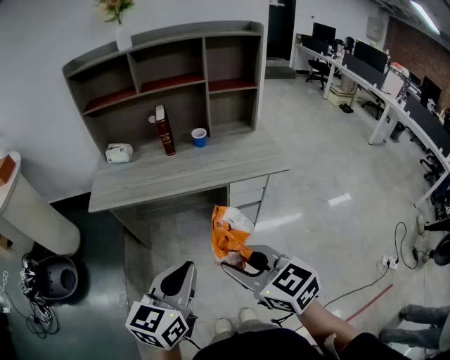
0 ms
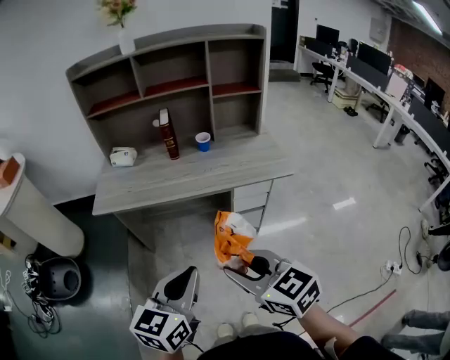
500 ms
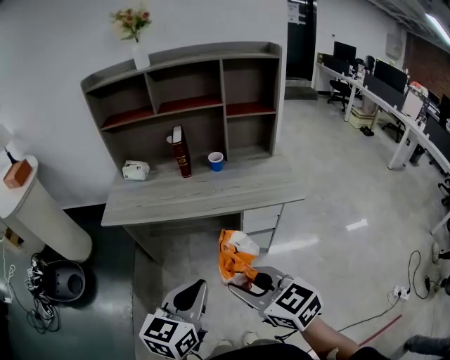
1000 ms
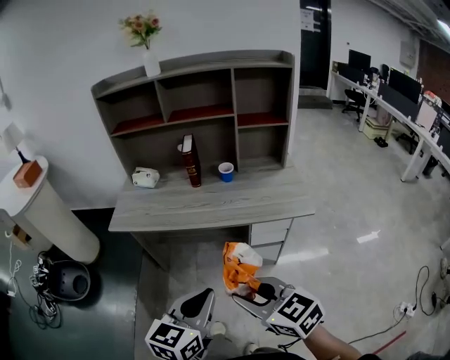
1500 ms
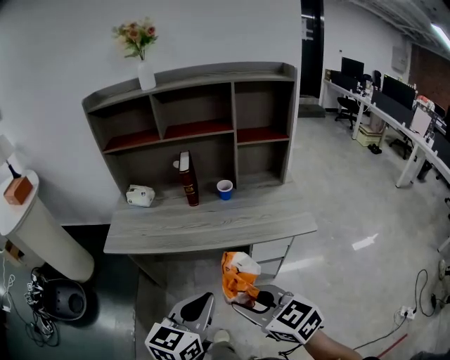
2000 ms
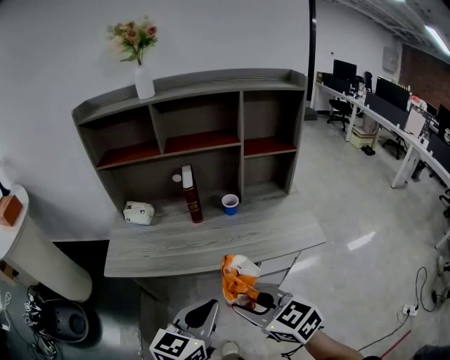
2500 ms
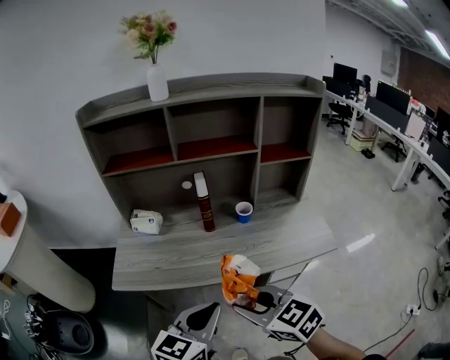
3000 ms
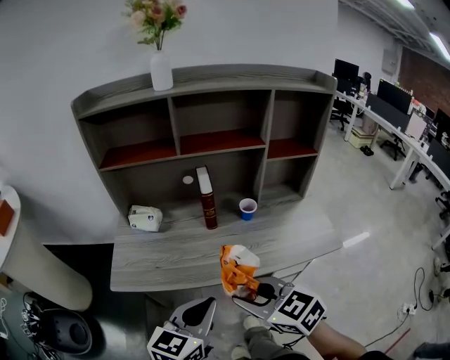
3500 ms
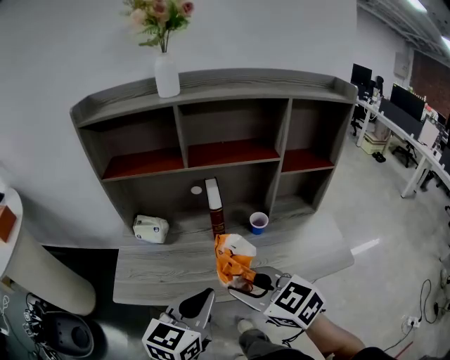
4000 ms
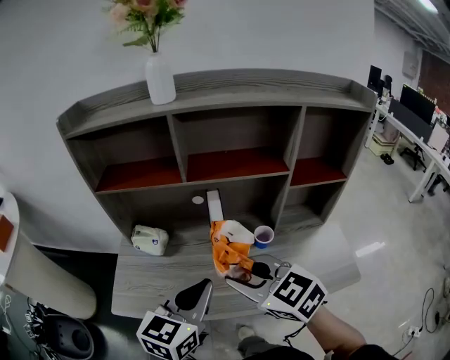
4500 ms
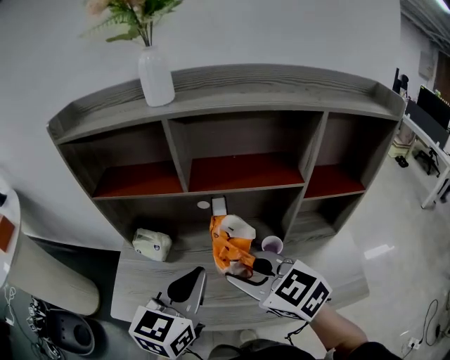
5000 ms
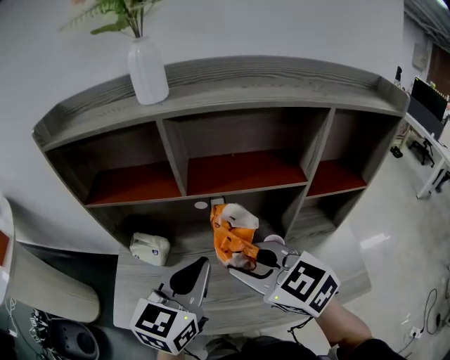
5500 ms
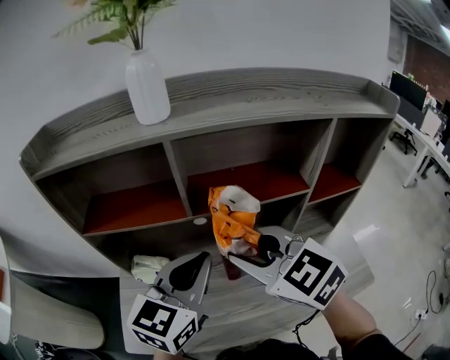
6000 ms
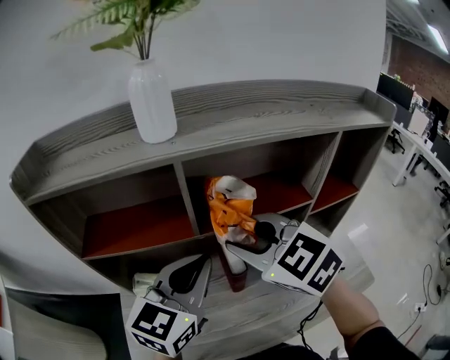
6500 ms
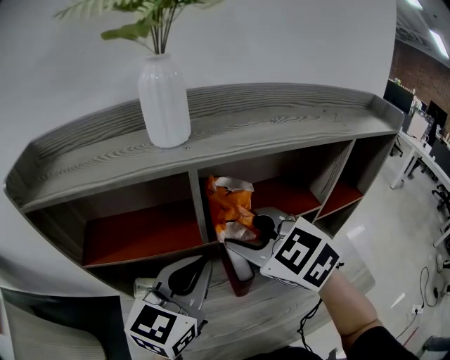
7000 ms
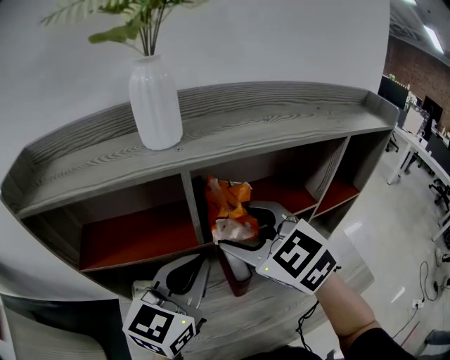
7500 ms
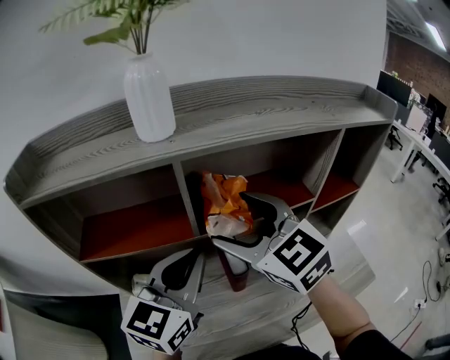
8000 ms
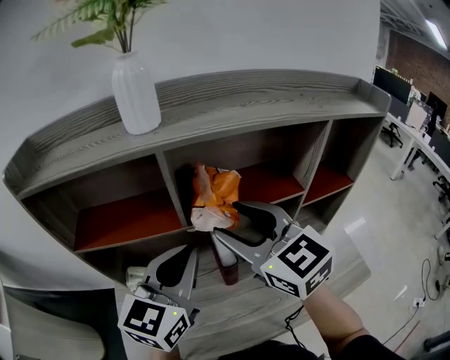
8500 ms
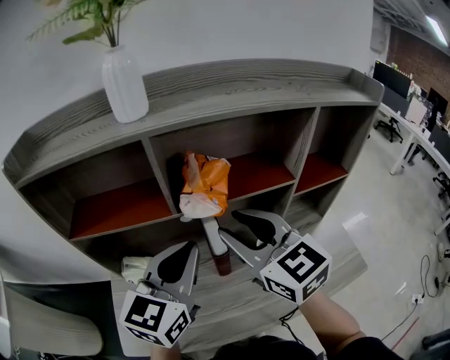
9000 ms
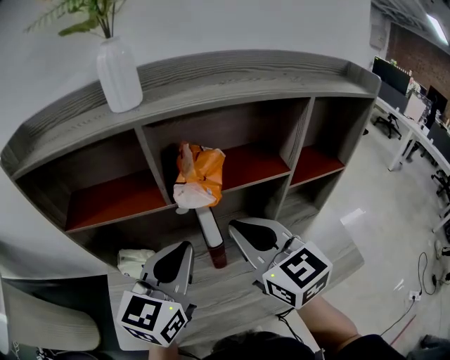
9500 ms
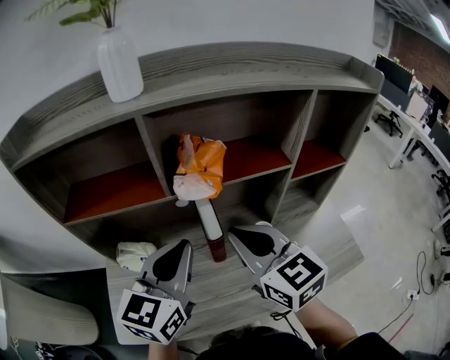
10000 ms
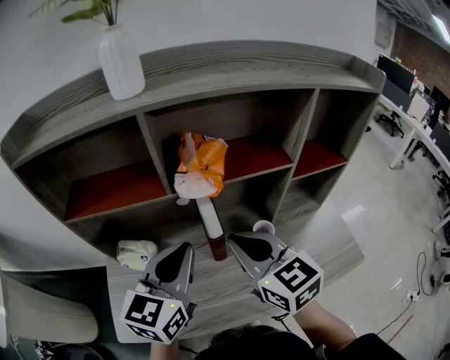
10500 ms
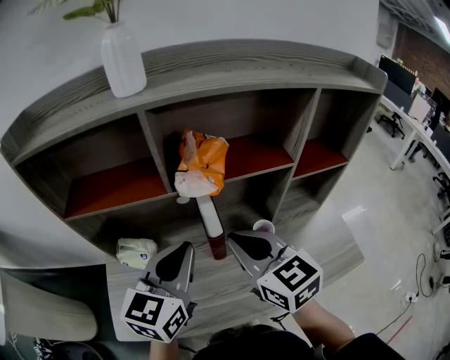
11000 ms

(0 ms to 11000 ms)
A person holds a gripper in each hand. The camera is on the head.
0 ms - 2000 ms: The right gripper heads forward, covering roughly 10 cm. The left gripper goes about 15 cm forward and to the right.
2000 ms - 3500 ms: Both grippers travel together forward and to the left, roughly 20 cm.
3500 ms - 5500 ms: Both grippers move forward, some 25 cm.
5500 ms - 7500 ms: The left gripper moves forward and upward, approximately 10 cm. Meanwhile the right gripper heads forward and upward, covering some 20 cm, rotates some 20 degrees, and opens up.
7500 ms - 9000 ms: The right gripper is displaced backward and to the right by some 10 cm, turns by some 20 degrees, and closes up. The left gripper shifts by about 5 cm.
9000 ms - 11000 ms: The right gripper goes some 5 cm downward, and closes. Meanwhile the left gripper moves approximately 5 cm.

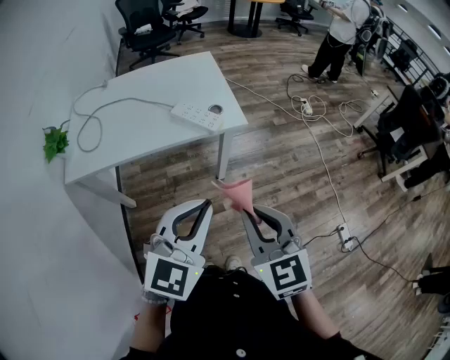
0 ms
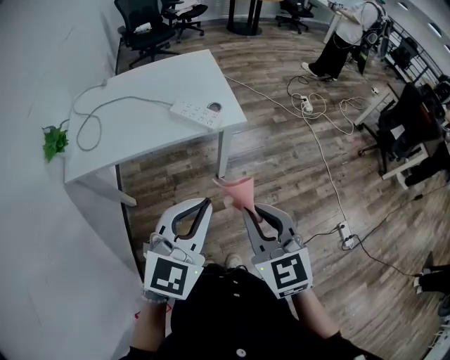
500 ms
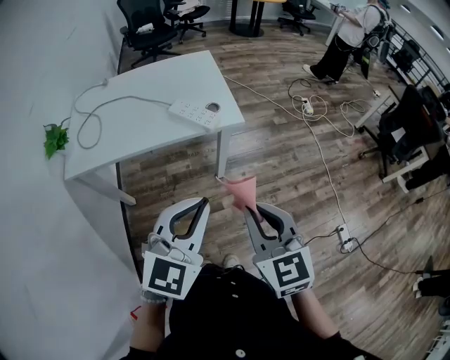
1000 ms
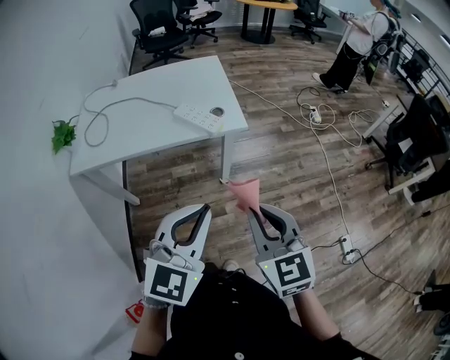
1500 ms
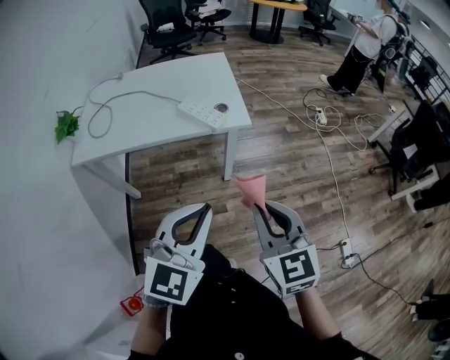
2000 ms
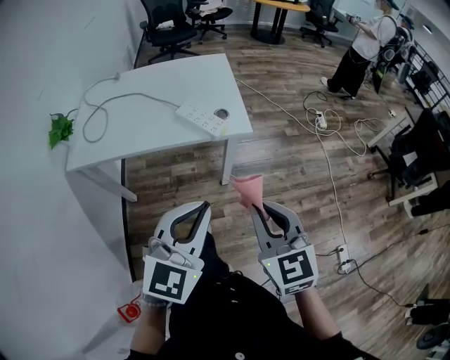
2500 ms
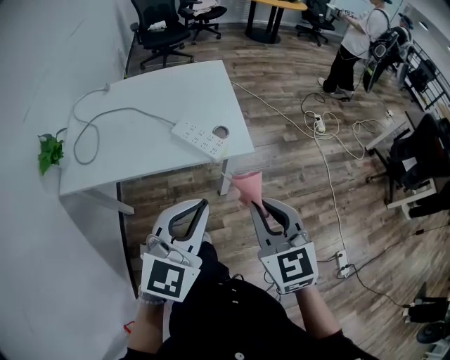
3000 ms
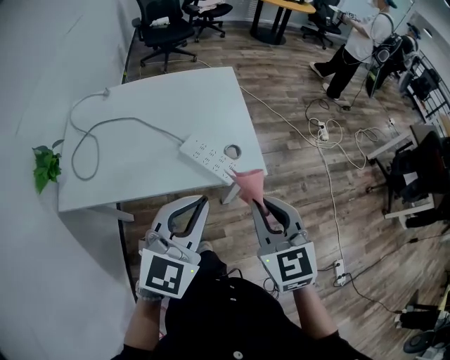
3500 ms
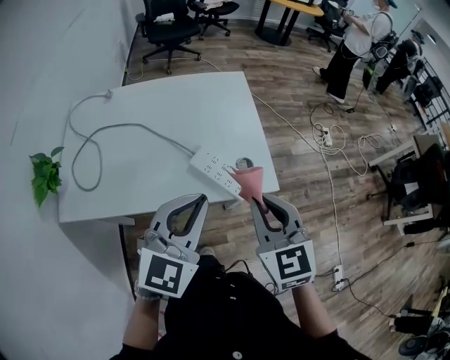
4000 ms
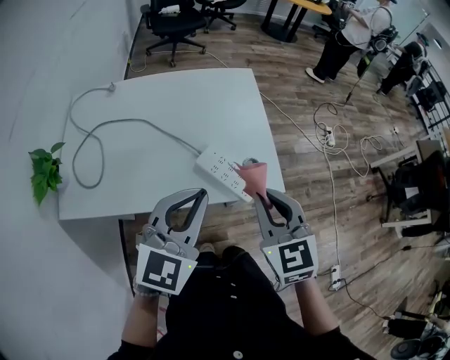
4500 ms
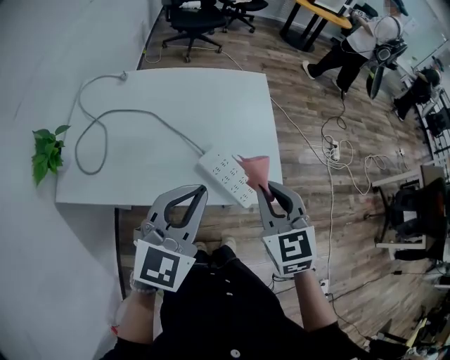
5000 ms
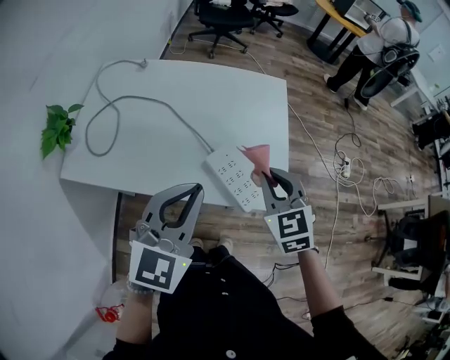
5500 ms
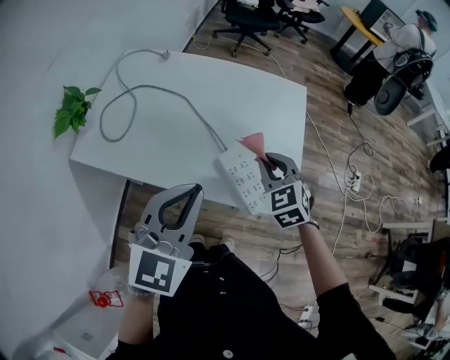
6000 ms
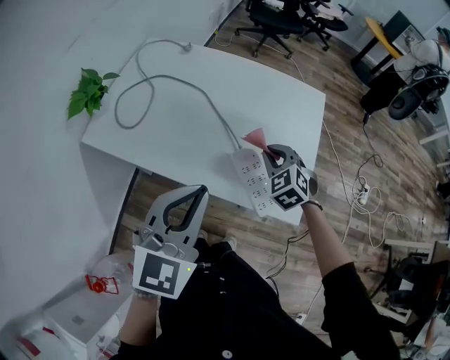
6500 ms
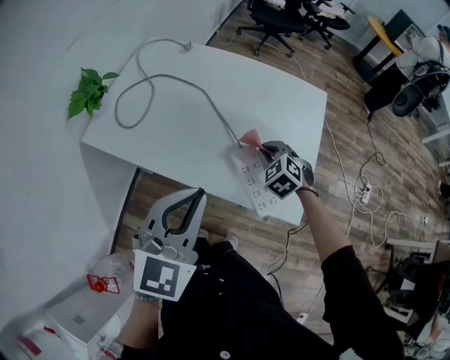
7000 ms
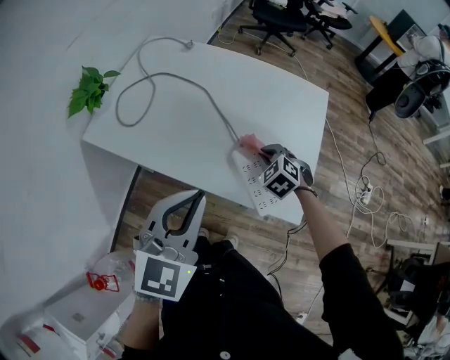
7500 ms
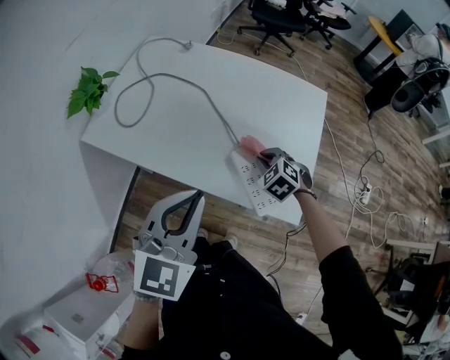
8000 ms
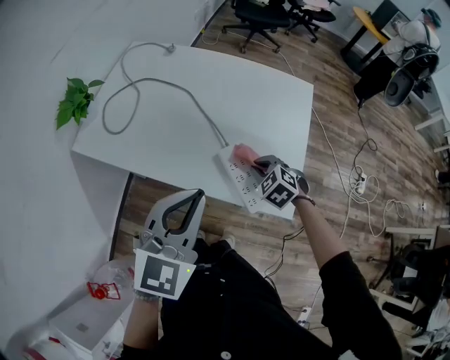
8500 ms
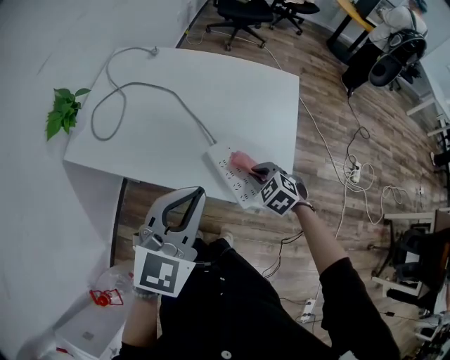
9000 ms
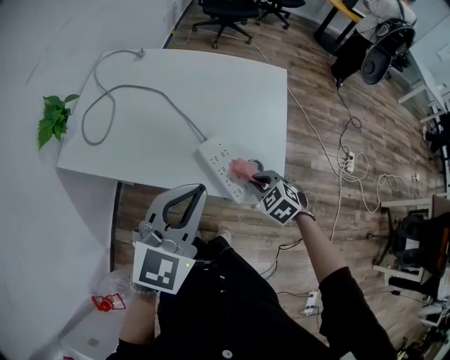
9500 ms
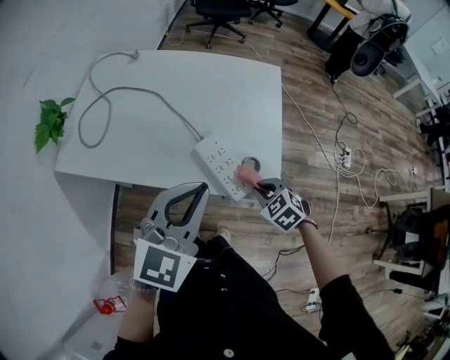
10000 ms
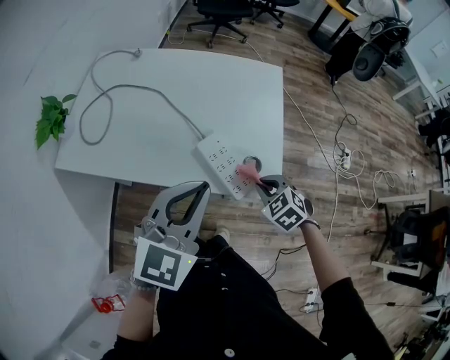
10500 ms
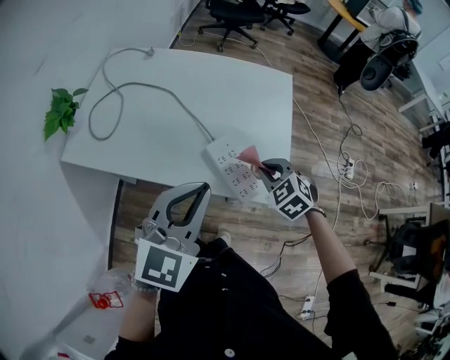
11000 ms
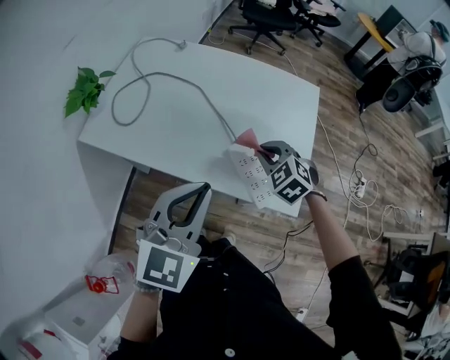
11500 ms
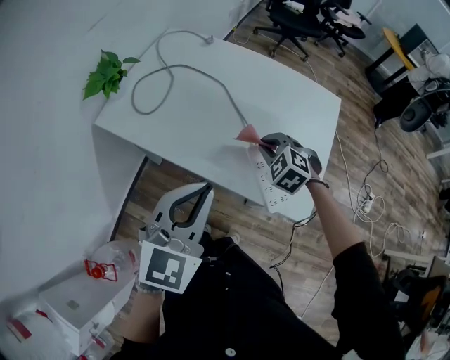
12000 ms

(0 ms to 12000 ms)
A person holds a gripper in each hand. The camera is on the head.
0 ms - 2000 ms: Both grippers travel together to the right, approximately 5 cm.
2000 ms - 4000 ms: The two grippers go about 40 cm forward and to the left.
4000 ms - 6000 ms: The left gripper ends up approximately 5 cm from where it was, and changes its angle by approximately 20 degrees. The right gripper moves forward and downward, roughly 20 cm, and turns by roughly 30 degrees.
6000 ms - 8000 ms: The right gripper goes roughly 15 cm downward, and rotates approximately 30 degrees.
8000 ms - 10000 ms: The left gripper is displaced to the right by roughly 10 cm. Meanwhile the right gripper heads backward and to the right, covering roughly 20 cm.
10000 ms - 12000 ms: The left gripper travels to the left by some 10 cm; the right gripper goes roughly 20 cm to the left and forward, and turns by roughly 30 degrees.

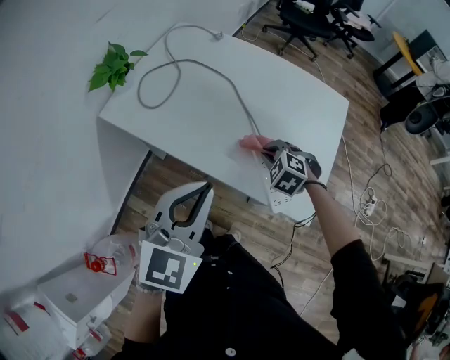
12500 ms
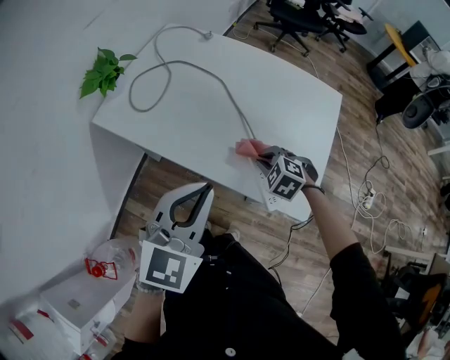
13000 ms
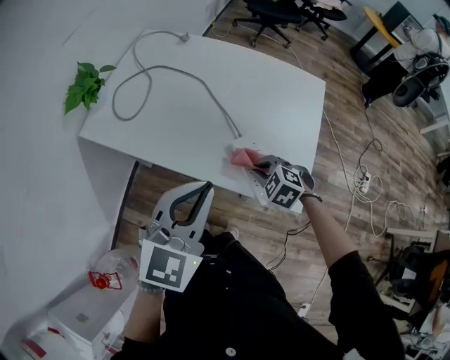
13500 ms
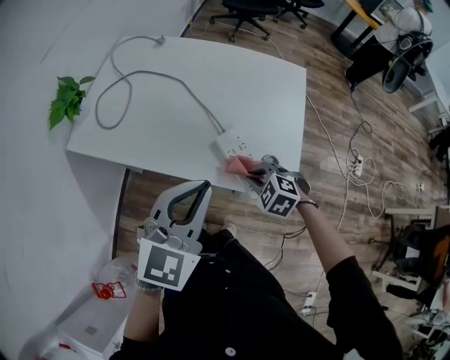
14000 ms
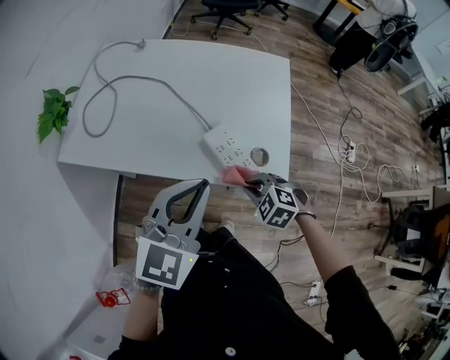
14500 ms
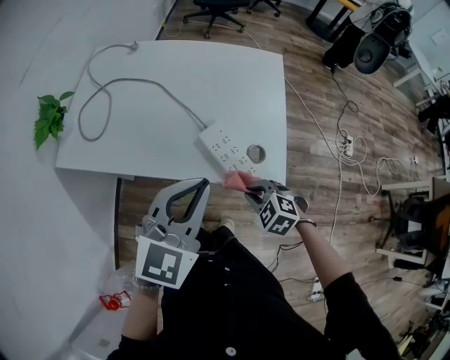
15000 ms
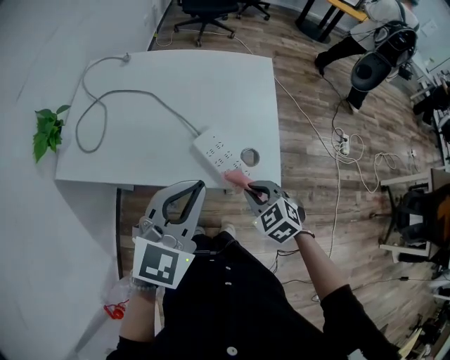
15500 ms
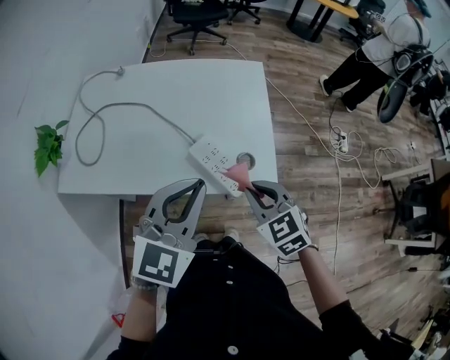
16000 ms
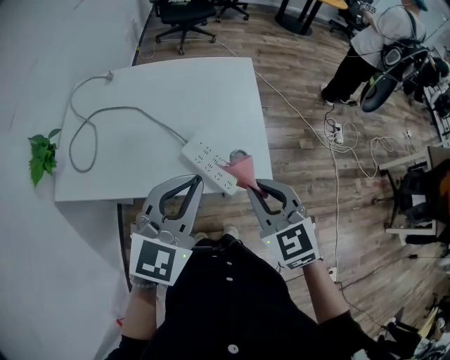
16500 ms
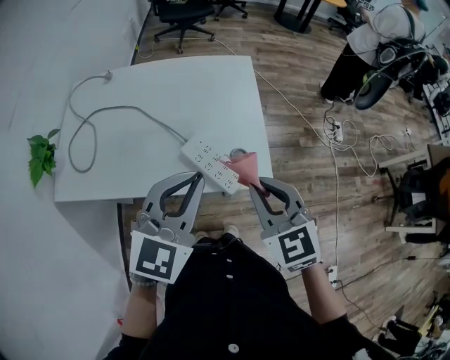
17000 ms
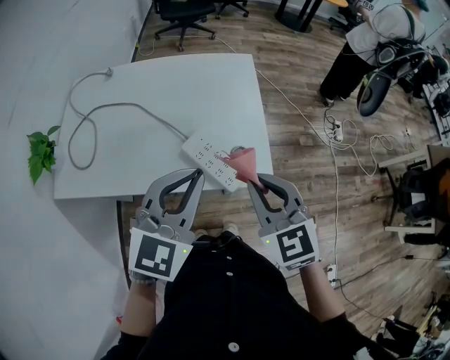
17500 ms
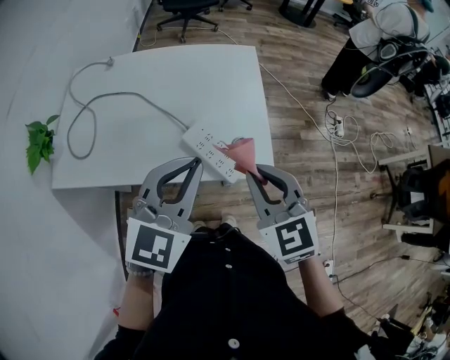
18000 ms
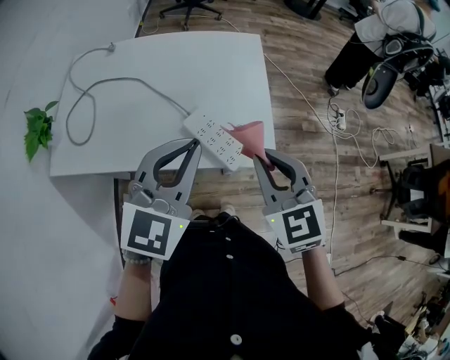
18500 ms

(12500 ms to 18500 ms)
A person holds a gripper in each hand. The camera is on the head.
12500 ms - 14500 ms: The right gripper heads backward, covering about 15 cm; the left gripper heads to the right, covering about 10 cm, and changes its angle by about 20 degrees.
14500 ms - 16500 ms: The right gripper is displaced upward by about 20 cm, and tips its fingers upward by roughly 30 degrees.
16500 ms - 18500 ms: The grippers stay close to where they were, moving slightly.
